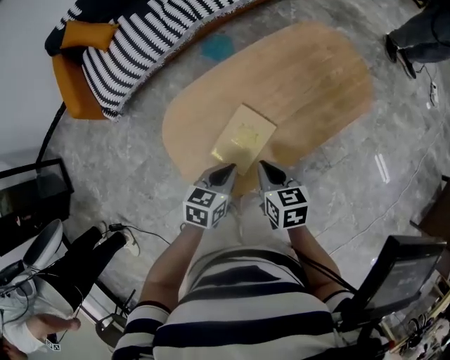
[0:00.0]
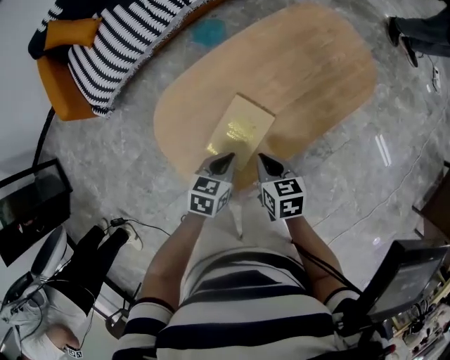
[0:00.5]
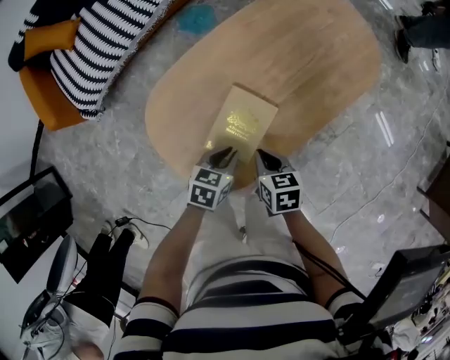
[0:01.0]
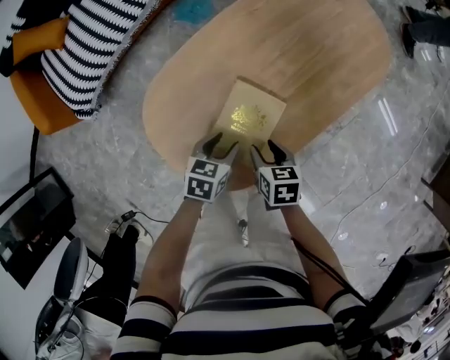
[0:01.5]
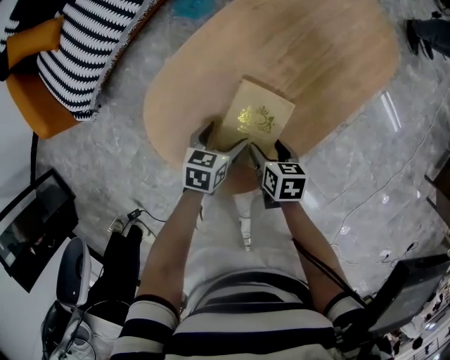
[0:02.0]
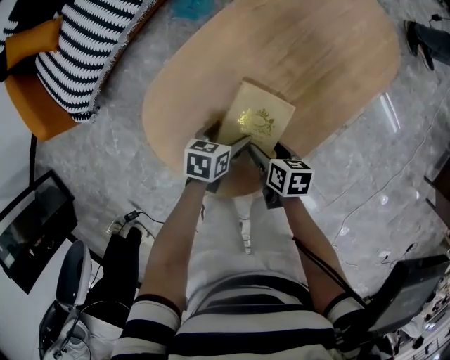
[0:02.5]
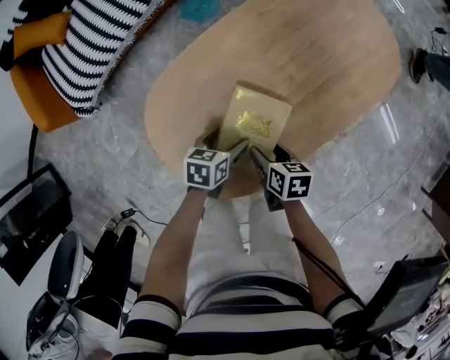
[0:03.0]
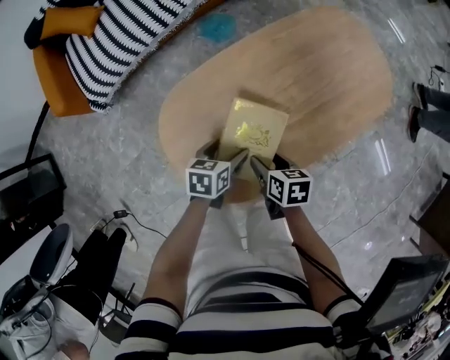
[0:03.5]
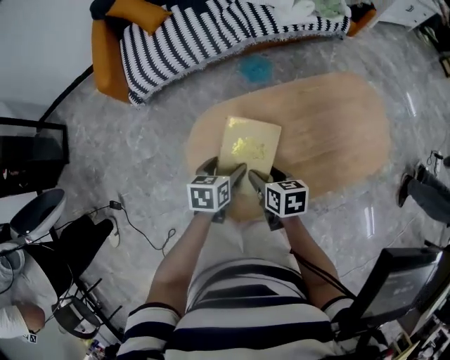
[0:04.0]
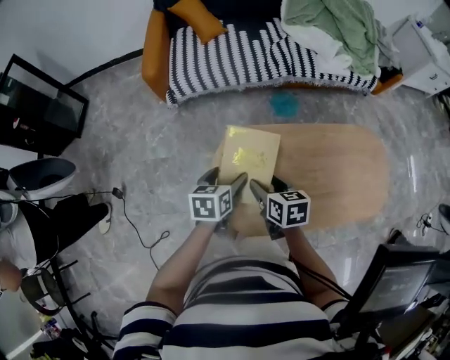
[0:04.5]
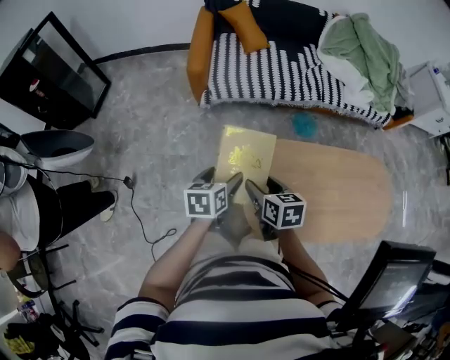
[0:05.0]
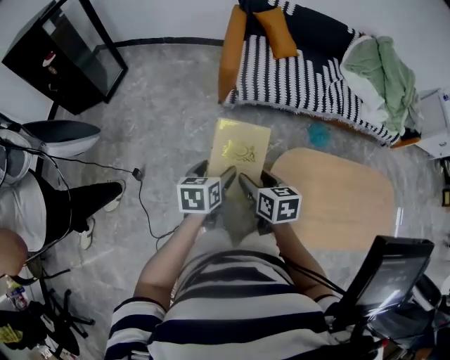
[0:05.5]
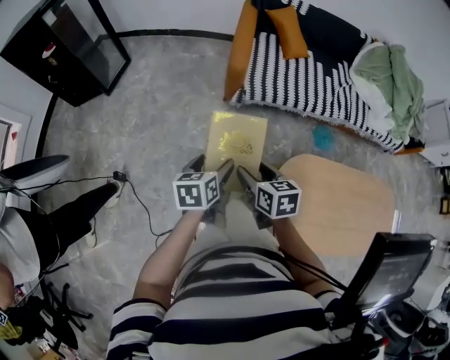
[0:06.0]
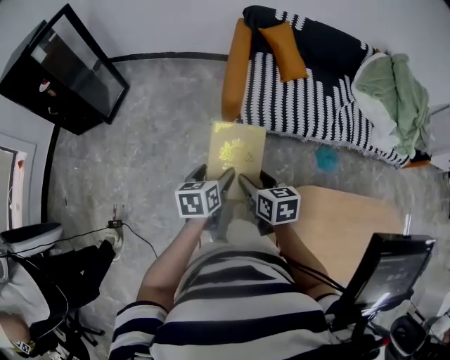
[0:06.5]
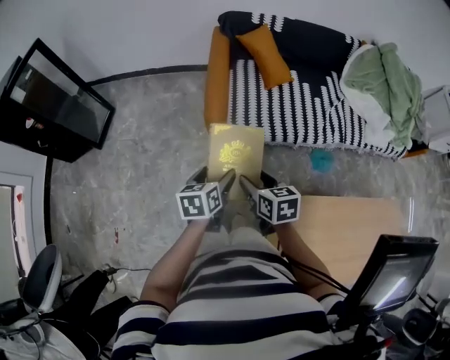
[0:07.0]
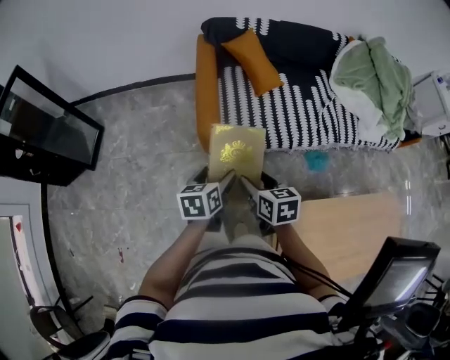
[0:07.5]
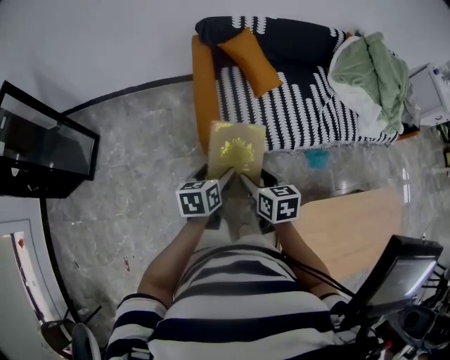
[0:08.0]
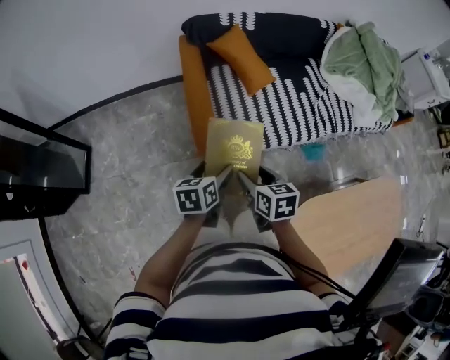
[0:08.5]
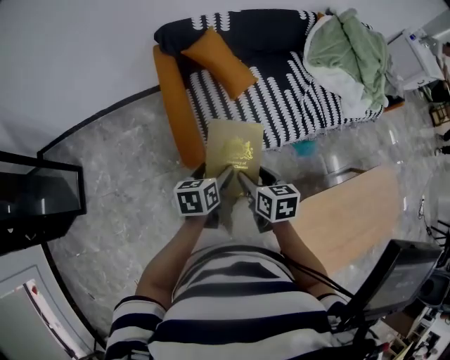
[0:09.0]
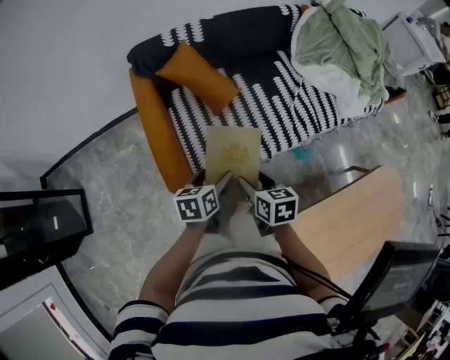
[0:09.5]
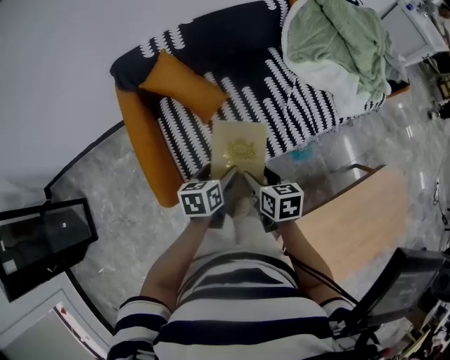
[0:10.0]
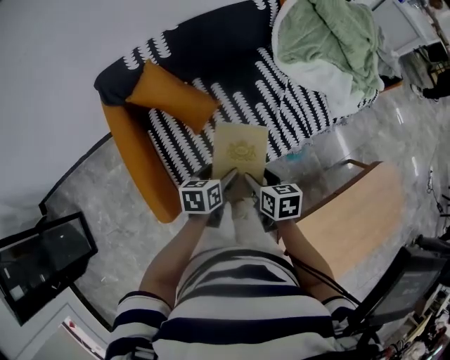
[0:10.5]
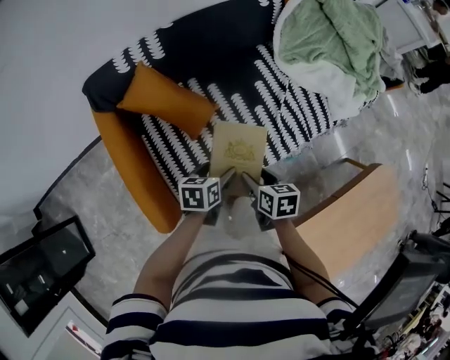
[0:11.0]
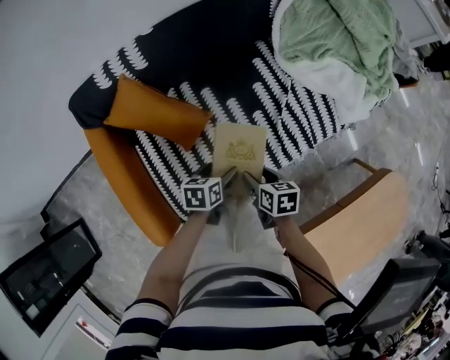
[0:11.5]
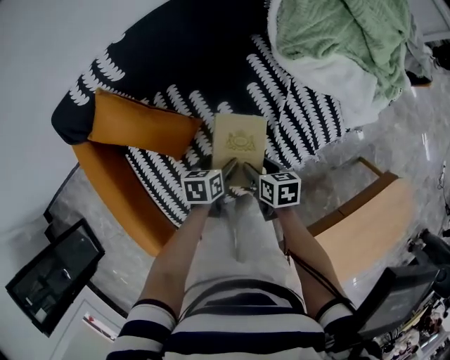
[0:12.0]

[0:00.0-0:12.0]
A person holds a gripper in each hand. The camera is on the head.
0:00.0 to 0:02.0: Both grippers travel together downward, roughly 15 cm. The left gripper opens, while the right gripper turns by approximately 30 degrees, and opens up.
0:02.0 to 0:04.0: Both grippers travel together upward, about 15 cm. The right gripper swivels about 30 degrees, while the left gripper turns by about 40 degrees.
0:04.0 to 0:06.0: Both grippers are carried roughly 40 cm. The left gripper changes its angle by roughly 40 degrees, while the right gripper rotates roughly 30 degrees.
0:06.0 to 0:08.0: The two grippers go about 30 cm forward.
0:08.0 to 0:10.0: The two grippers go about 25 cm forward and to the right.
0:10.0 to 0:12.0: The two grippers go roughly 25 cm forward and downward.

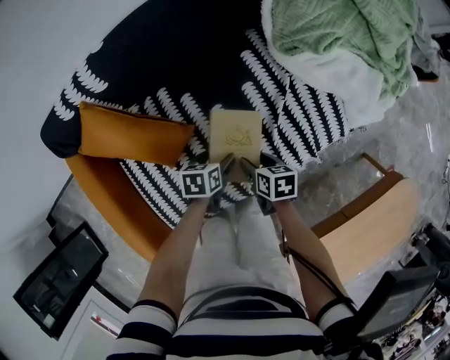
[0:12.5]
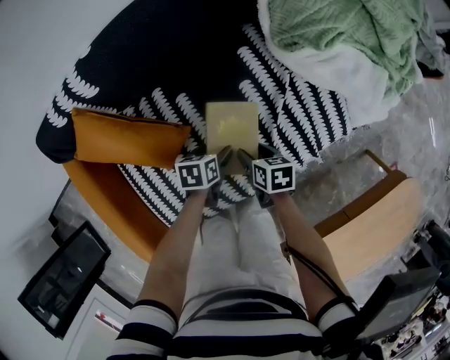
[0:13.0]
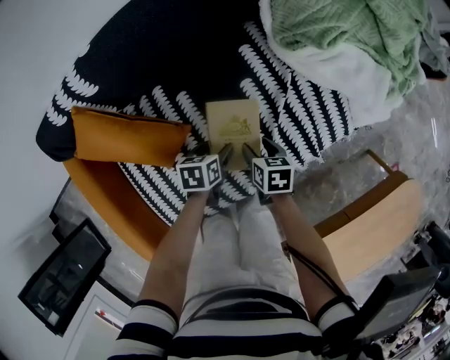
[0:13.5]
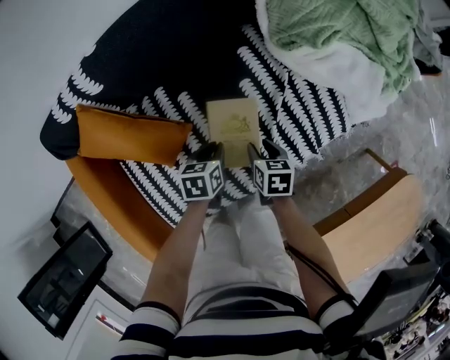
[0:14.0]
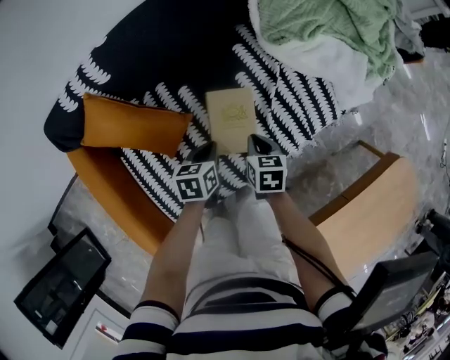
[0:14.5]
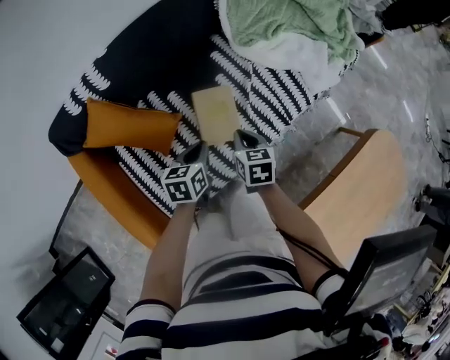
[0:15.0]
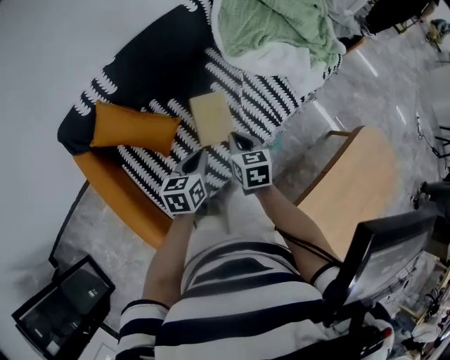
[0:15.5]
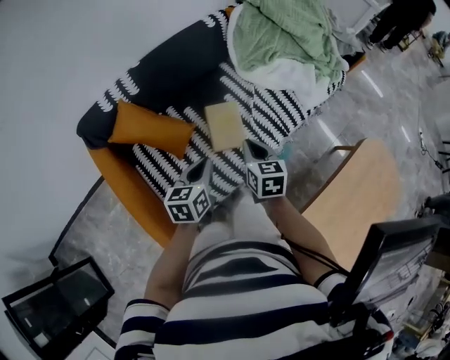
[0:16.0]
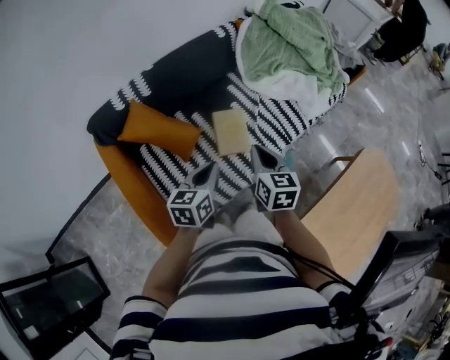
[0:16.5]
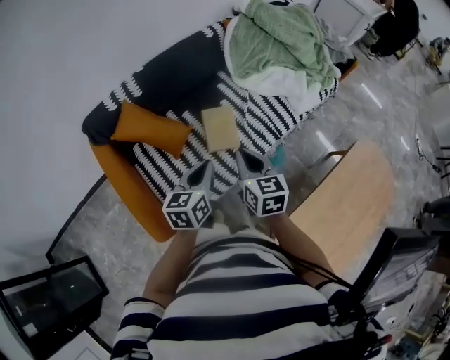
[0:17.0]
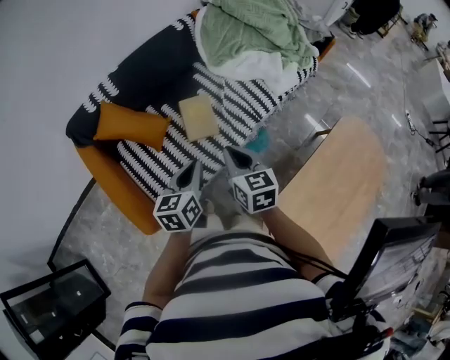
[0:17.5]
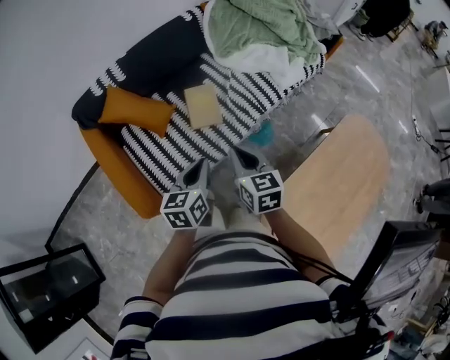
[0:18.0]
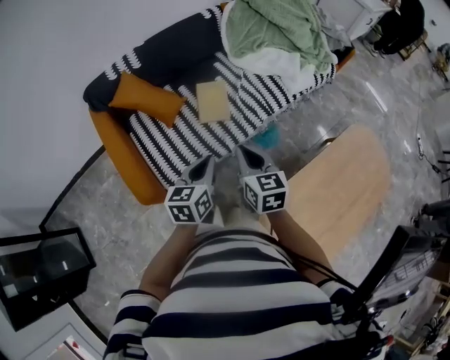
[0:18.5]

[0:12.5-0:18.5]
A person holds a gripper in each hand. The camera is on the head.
0:12.5 to 0:14.5: The right gripper changes its angle by about 20 degrees, and closes its fingers. Meanwhile the left gripper shifts roughly 5 cm upward, and closes its fingers.
0:14.5 to 0:16.5: The two grippers go approximately 30 cm upward and backward. The right gripper changes its angle by some 30 degrees. Meanwhile the left gripper swivels some 30 degrees.
0:16.5 to 0:18.5: The left gripper heads backward and to the right, covering roughly 15 cm. The right gripper shifts approximately 15 cm backward.

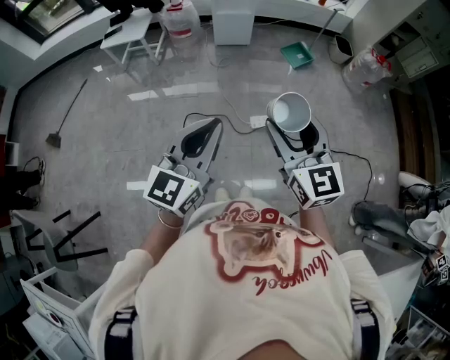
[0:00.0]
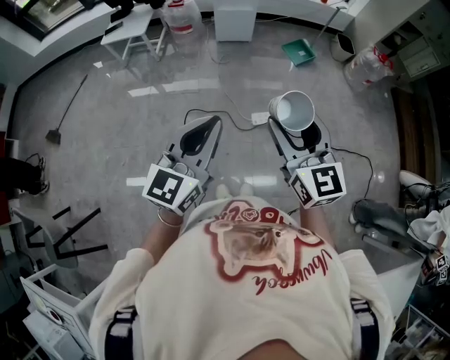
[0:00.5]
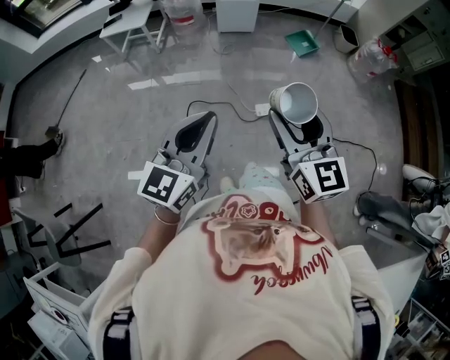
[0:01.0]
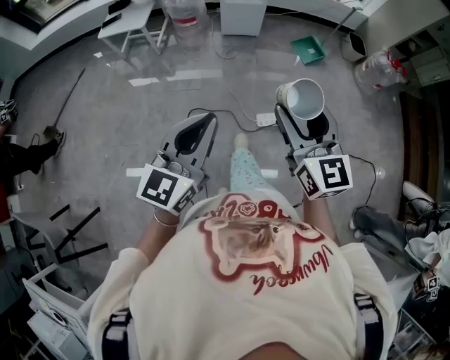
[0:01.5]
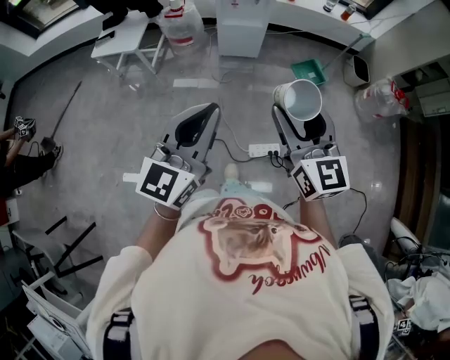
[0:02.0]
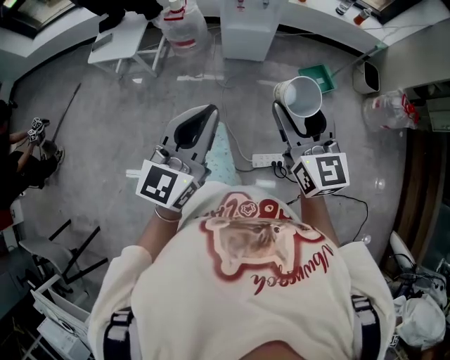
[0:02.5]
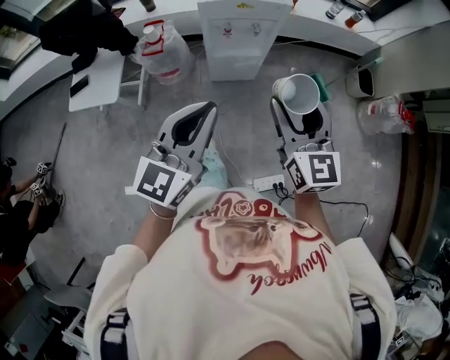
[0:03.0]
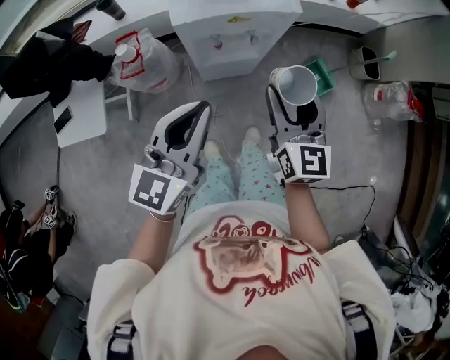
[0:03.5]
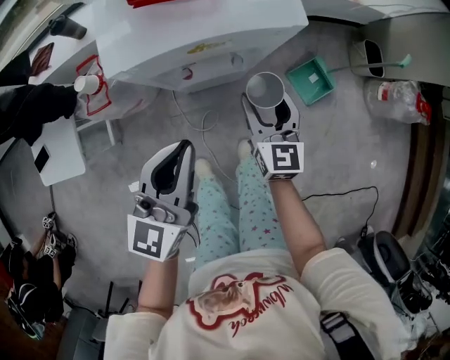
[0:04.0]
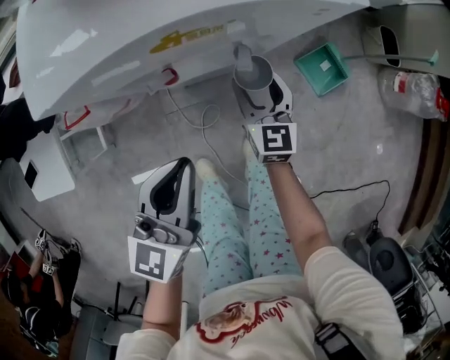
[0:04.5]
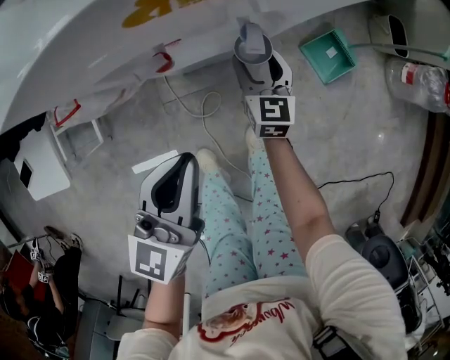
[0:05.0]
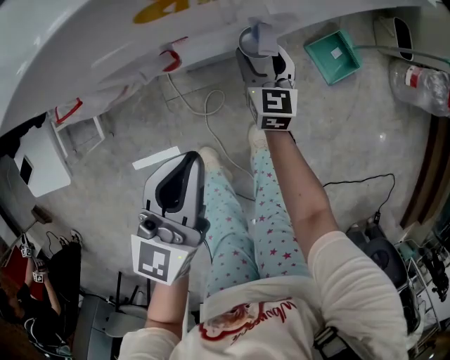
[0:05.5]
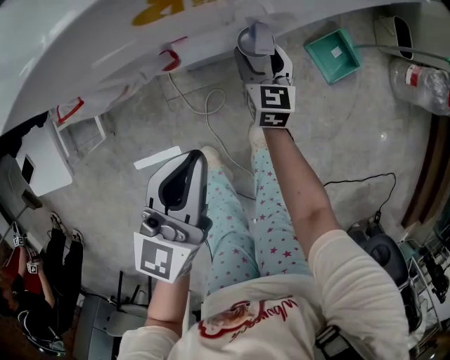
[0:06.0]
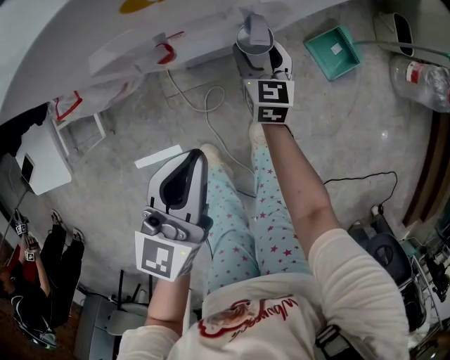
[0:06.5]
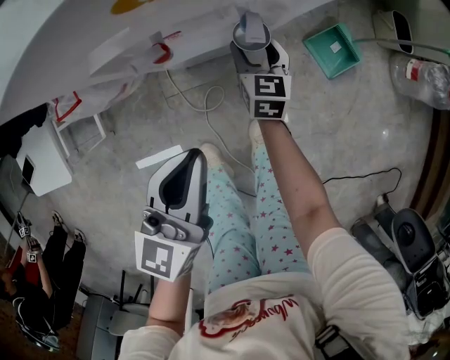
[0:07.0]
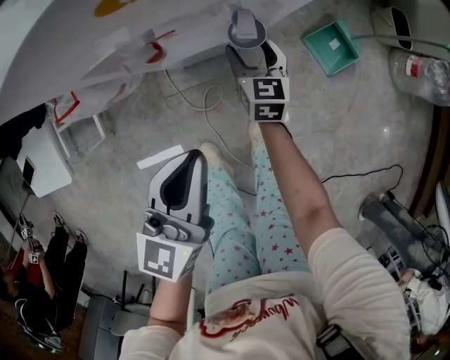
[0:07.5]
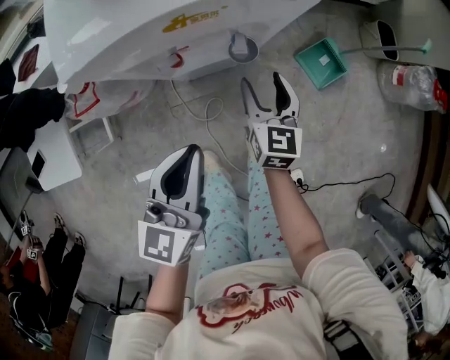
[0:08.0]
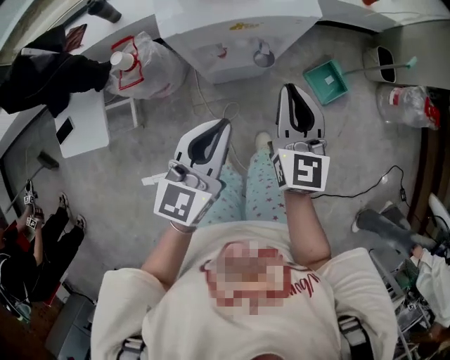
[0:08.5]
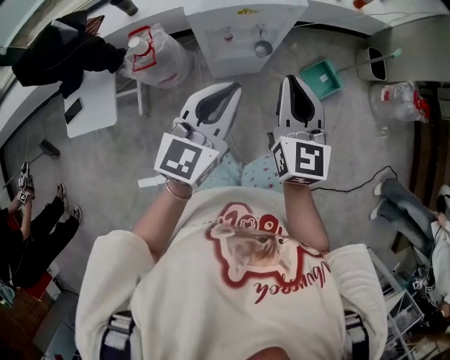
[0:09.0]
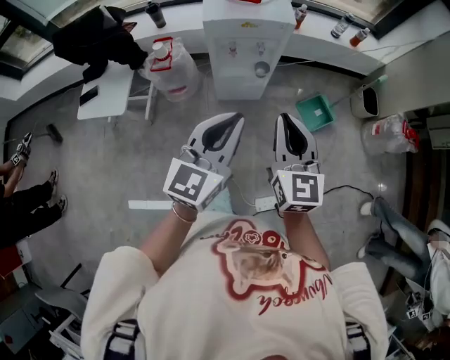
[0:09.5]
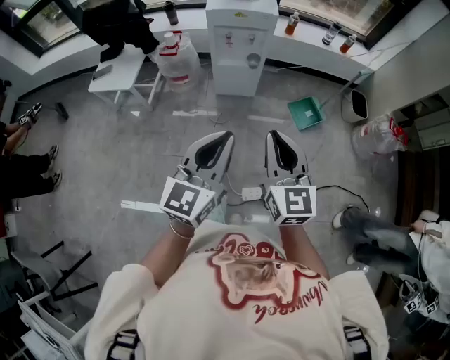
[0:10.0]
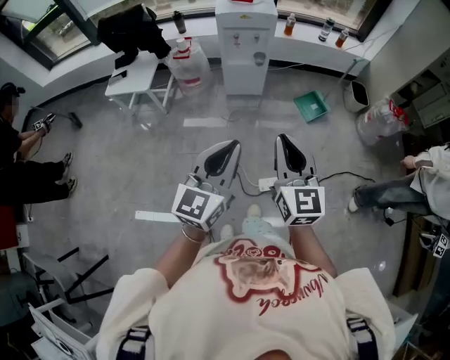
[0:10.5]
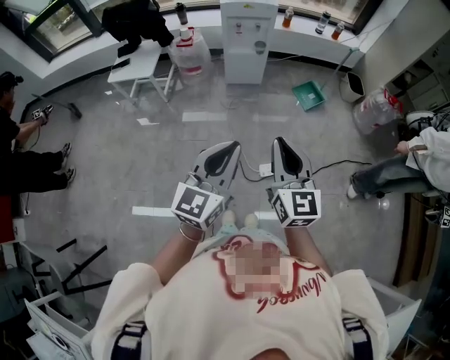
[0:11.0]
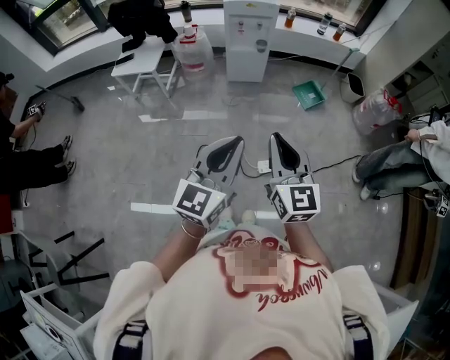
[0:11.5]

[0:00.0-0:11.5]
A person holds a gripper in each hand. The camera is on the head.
0:00.0 to 0:02.0: Both grippers move forward, about 30 cm.
0:02.0 to 0:04.0: The pair of grippers is taken forward, roughly 60 cm. The right gripper heads downward, covering approximately 35 cm, and turns by about 30 degrees.
0:04.0 to 0:06.0: The right gripper moves downward, approximately 20 cm. The left gripper is displaced downward by approximately 15 cm.
0:06.0 to 0:07.5: There are only small adjustments of the grippers.
0:07.5 to 0:09.5: The right gripper heads upward and backward, covering roughly 60 cm, changes its angle by approximately 30 degrees, and closes its fingers, while the left gripper heads upward and backward, covering about 35 cm, and turns by approximately 20 degrees.
0:09.5 to 0:11.5: The two grippers travel together, backward, roughly 50 cm.
